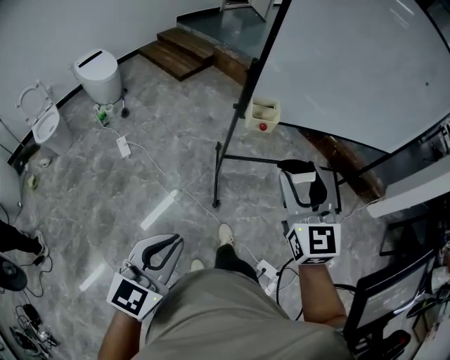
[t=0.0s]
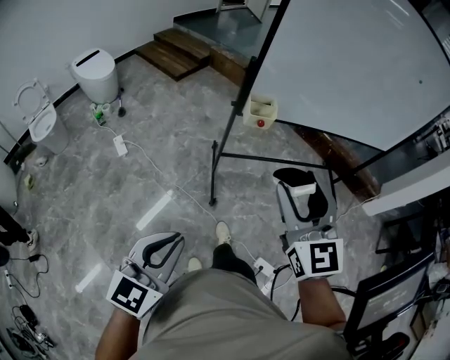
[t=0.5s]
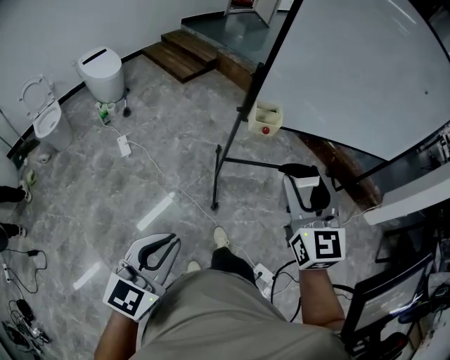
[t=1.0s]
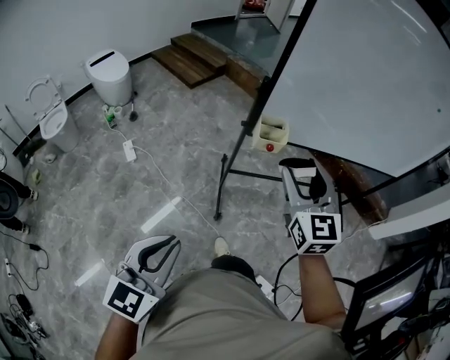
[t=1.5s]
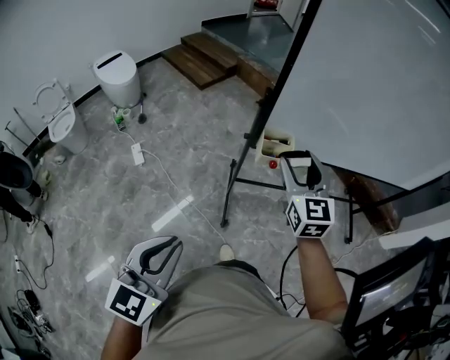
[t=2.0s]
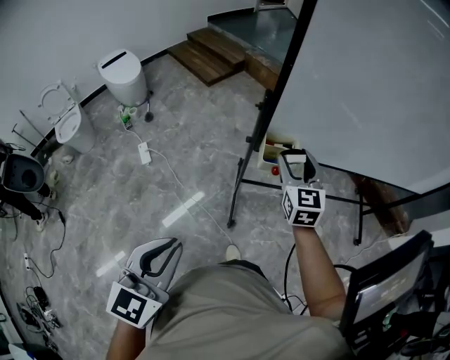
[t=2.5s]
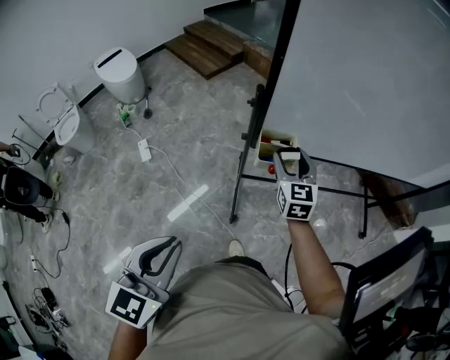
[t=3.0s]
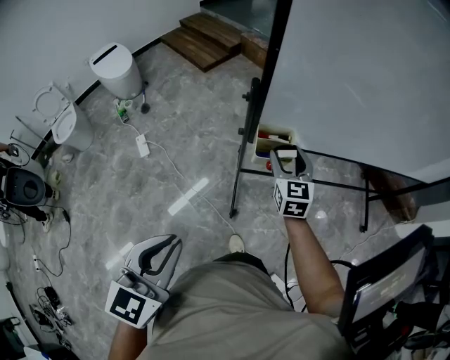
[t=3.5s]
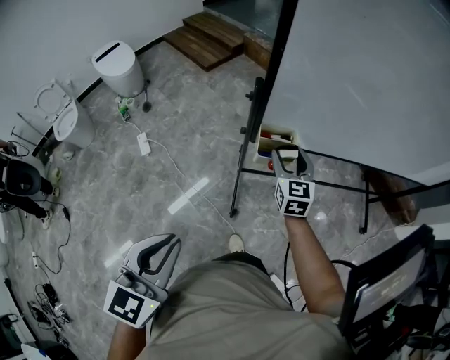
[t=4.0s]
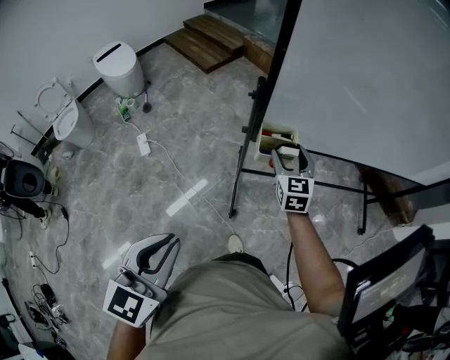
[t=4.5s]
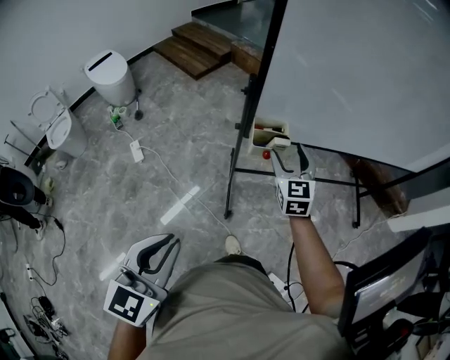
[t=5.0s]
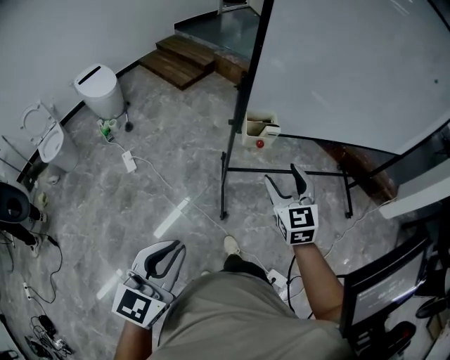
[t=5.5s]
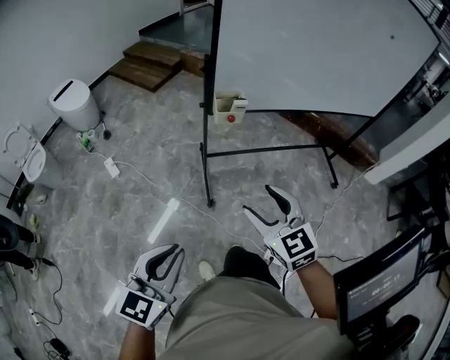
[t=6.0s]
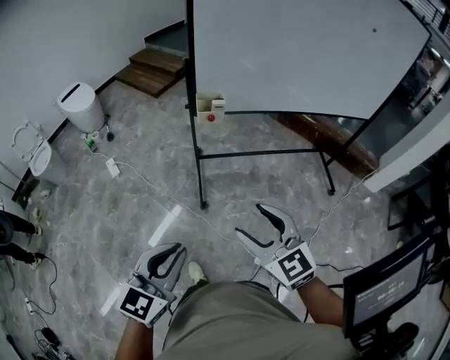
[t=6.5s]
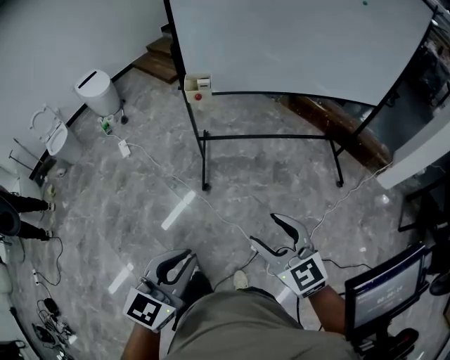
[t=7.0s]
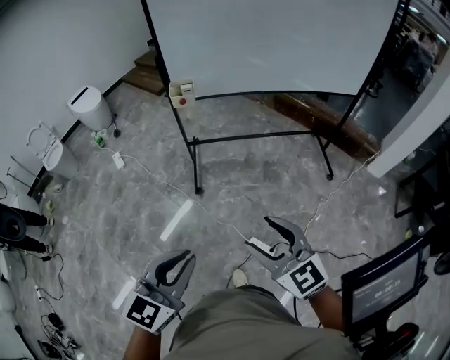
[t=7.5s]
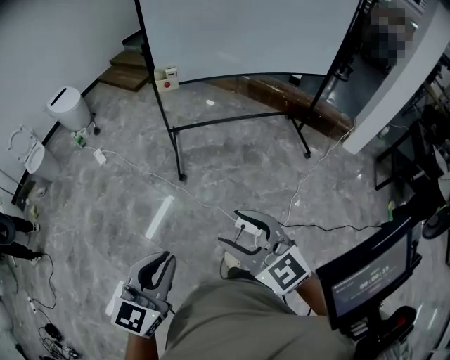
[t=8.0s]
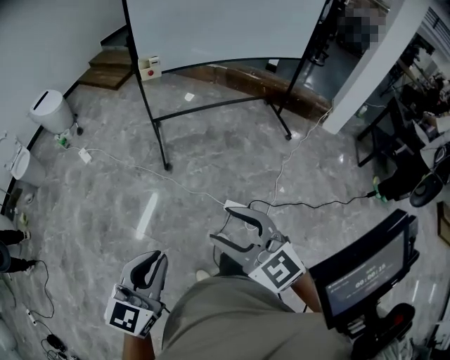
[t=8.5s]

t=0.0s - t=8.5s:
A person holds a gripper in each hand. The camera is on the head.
t=0.0s - t=2.0s: The right gripper moves forward, roughly 20 cm. The left gripper travels forward by roughly 10 cm.
t=2.0s - t=4.0s: The right gripper travels downward and forward by some 20 cm. Meanwhile the left gripper shifts some 5 cm forward.
t=4.0s - t=6.5s: The right gripper is displaced backward by approximately 50 cm, and changes its angle by roughly 20 degrees, while the left gripper goes about 30 cm backward and to the right.
t=6.5s - t=8.5s: The two grippers go roughly 40 cm backward.

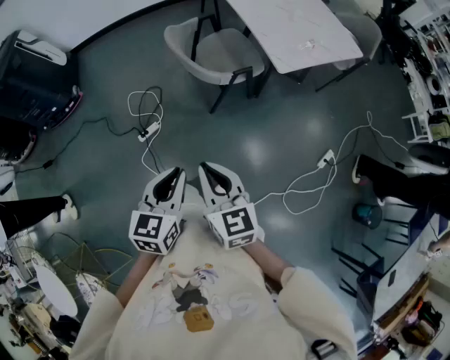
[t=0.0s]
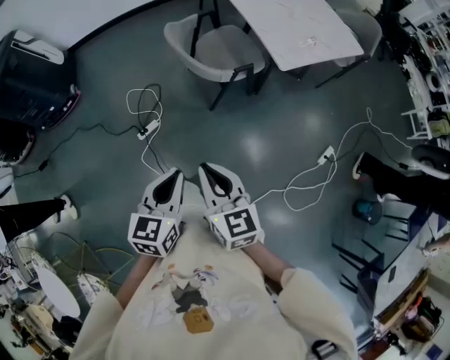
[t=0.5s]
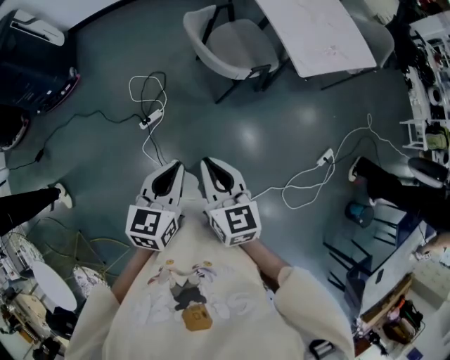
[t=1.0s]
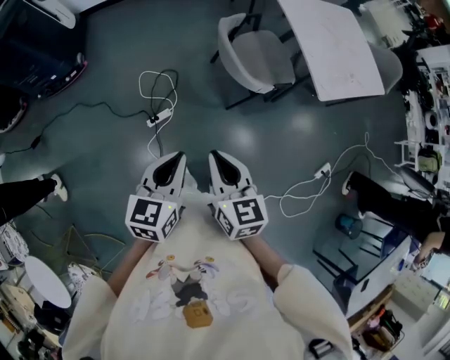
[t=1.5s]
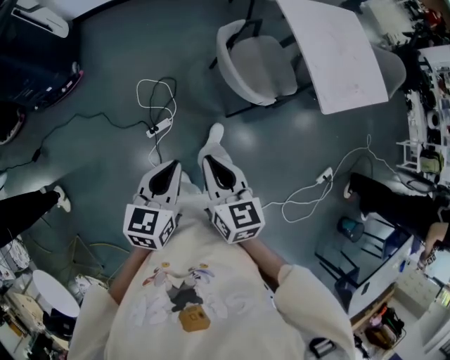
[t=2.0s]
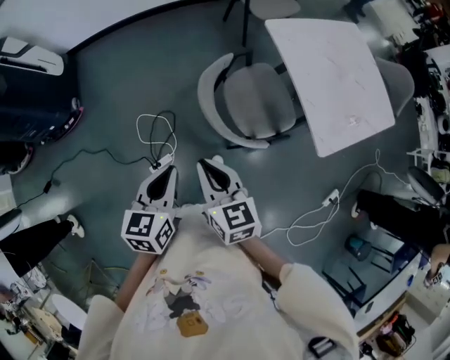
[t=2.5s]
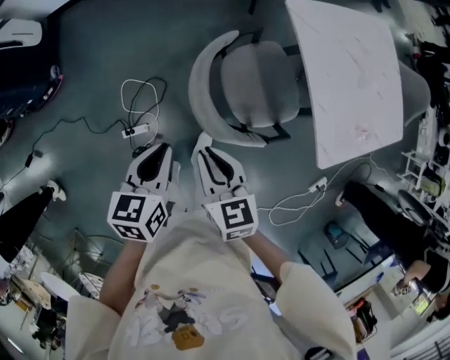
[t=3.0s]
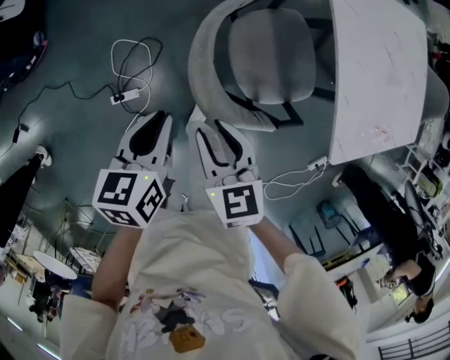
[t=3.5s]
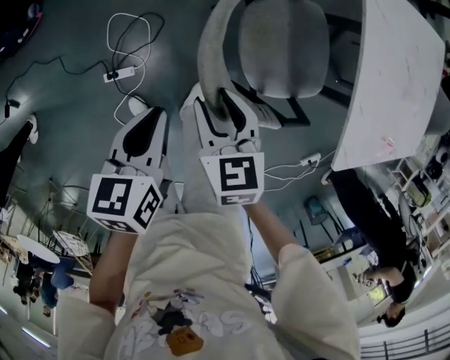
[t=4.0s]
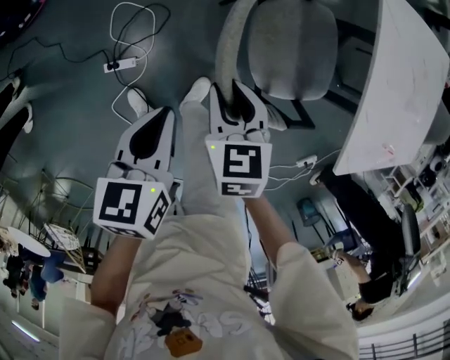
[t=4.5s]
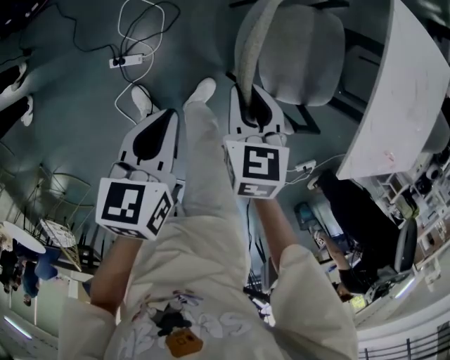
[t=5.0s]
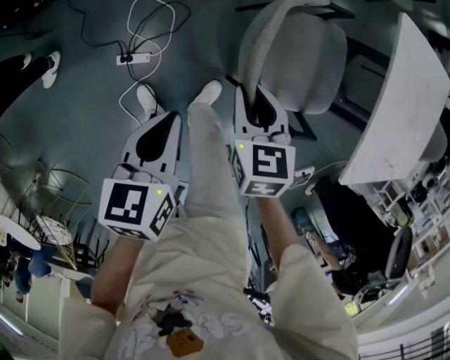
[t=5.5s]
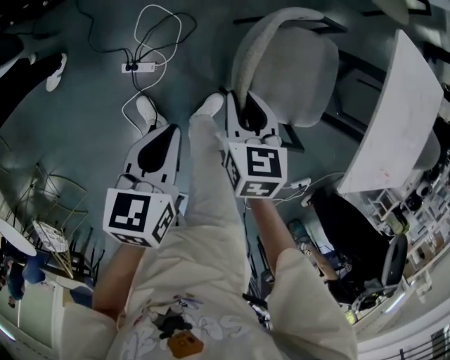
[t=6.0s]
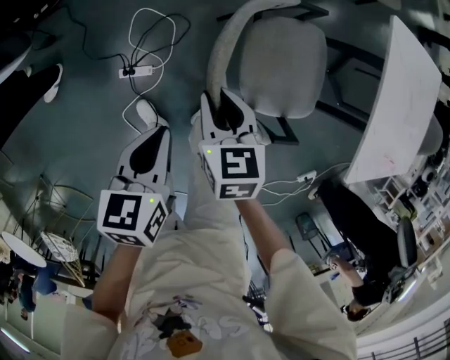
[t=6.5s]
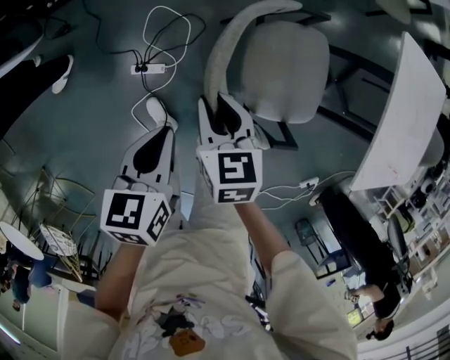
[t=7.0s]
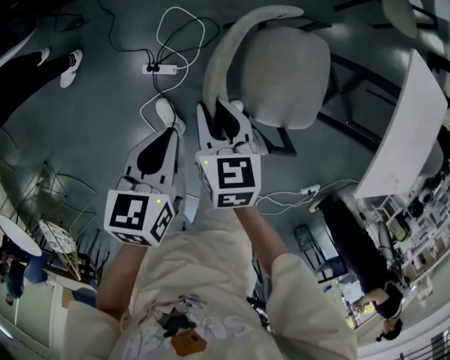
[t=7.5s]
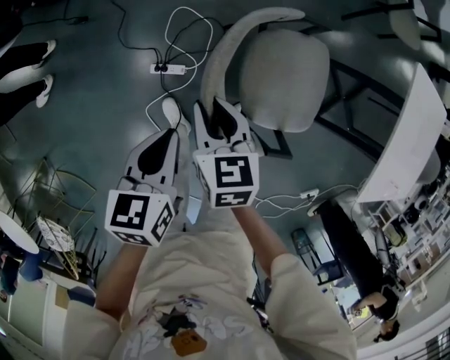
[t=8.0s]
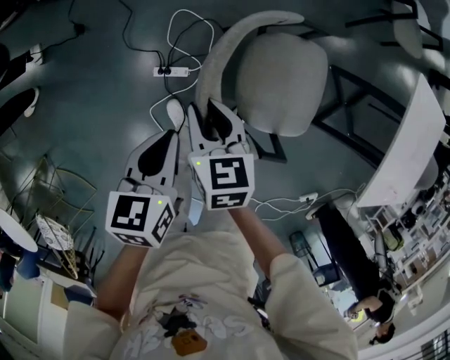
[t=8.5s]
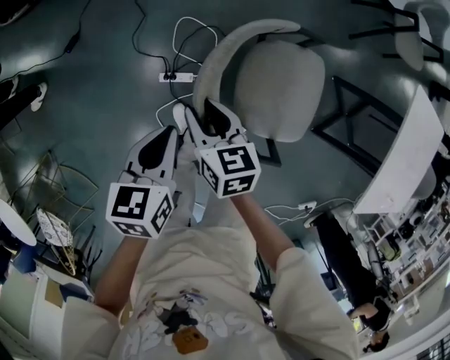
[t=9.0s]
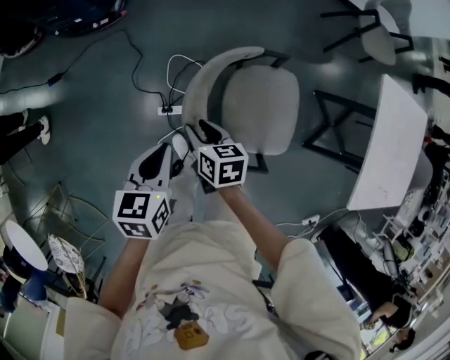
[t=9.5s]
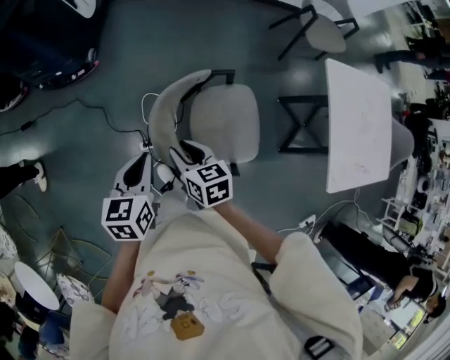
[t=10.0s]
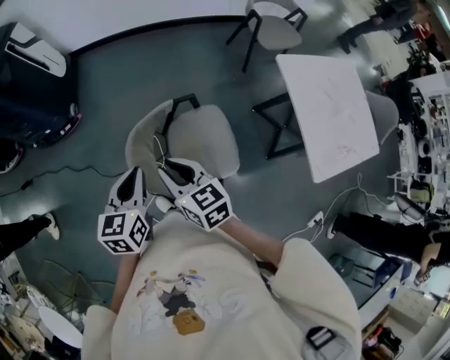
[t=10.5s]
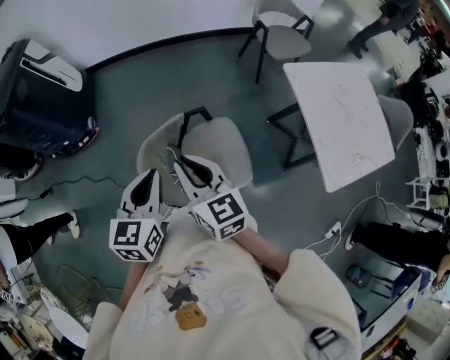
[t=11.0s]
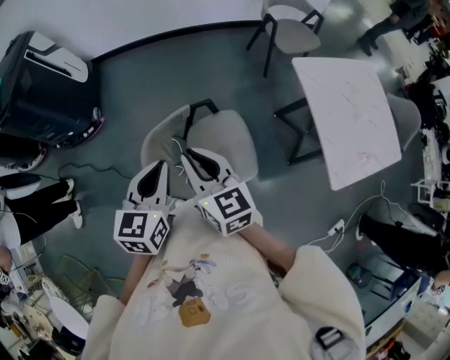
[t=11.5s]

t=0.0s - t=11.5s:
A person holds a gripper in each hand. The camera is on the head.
t=0.0s - t=2.0s: Both grippers travel together to the left and forward, some 30 cm.
t=2.0s - t=4.0s: The grippers both shift forward and downward by approximately 40 cm. The left gripper rotates approximately 30 degrees, while the right gripper rotates approximately 20 degrees, and opens its fingers.
t=4.0s - t=6.0s: The right gripper moves to the left, some 10 cm, while the left gripper goes some 15 cm to the left and backward.
t=6.0s - t=7.5s: Both grippers travel together to the left, about 15 cm.
t=7.5s - t=9.5s: The left gripper travels to the left and upward by some 15 cm; the right gripper is displaced to the left by approximately 10 cm.
t=9.5s - t=11.5s: Both grippers travel together upward and to the right, some 35 cm. The right gripper changes its angle by about 40 degrees, and closes up. Meanwhile the left gripper rotates some 30 degrees.

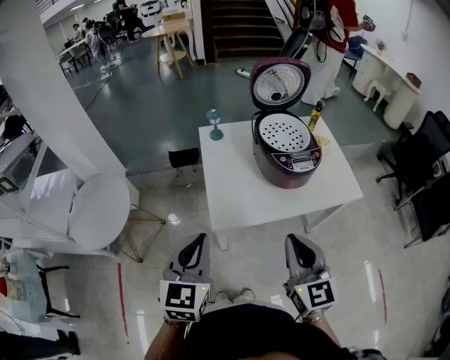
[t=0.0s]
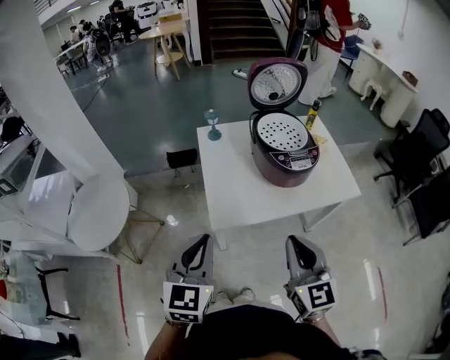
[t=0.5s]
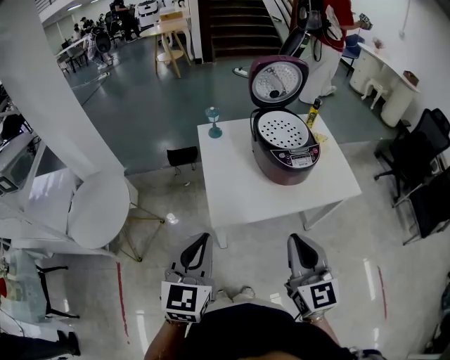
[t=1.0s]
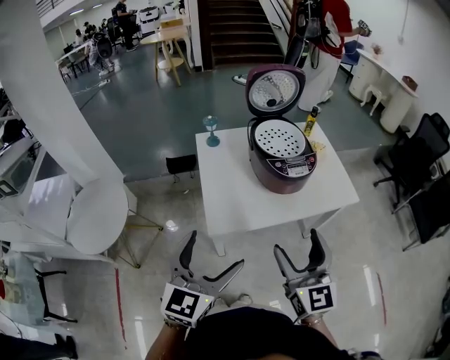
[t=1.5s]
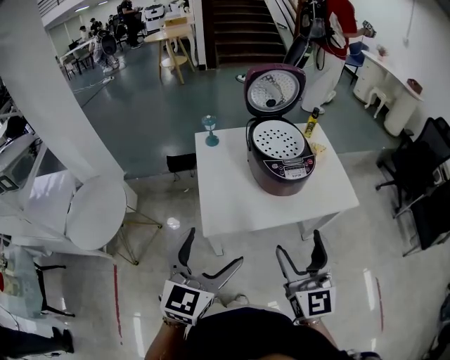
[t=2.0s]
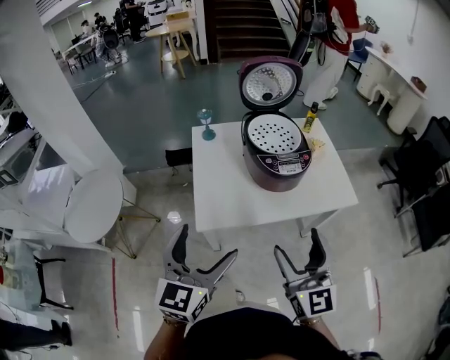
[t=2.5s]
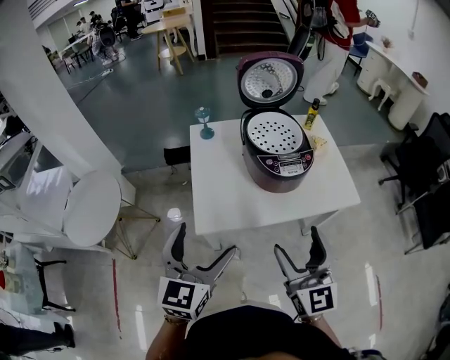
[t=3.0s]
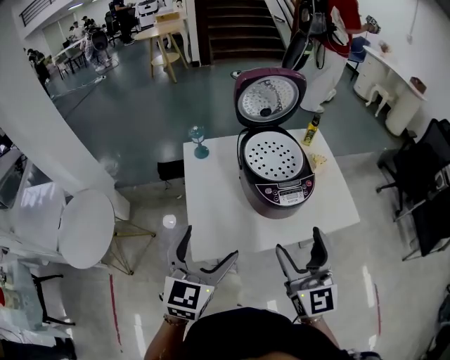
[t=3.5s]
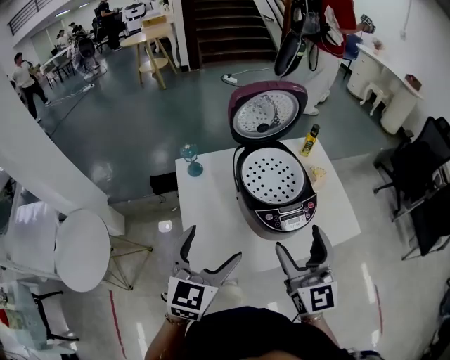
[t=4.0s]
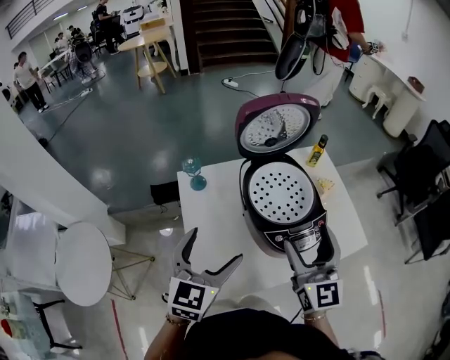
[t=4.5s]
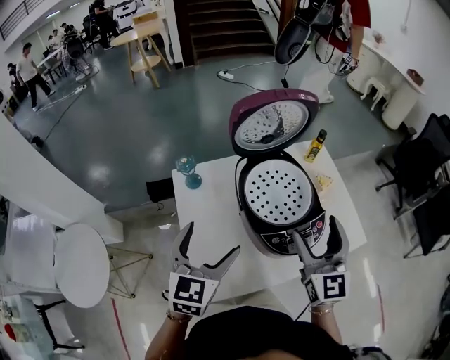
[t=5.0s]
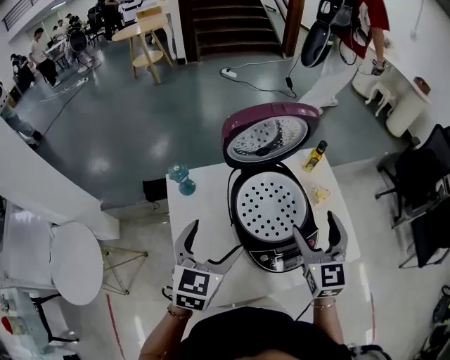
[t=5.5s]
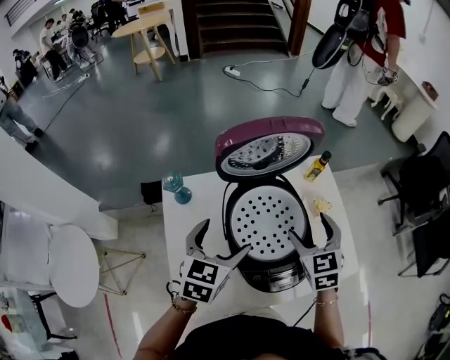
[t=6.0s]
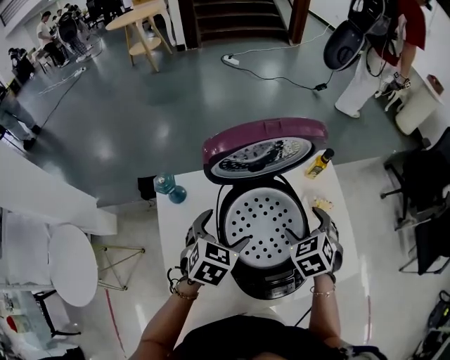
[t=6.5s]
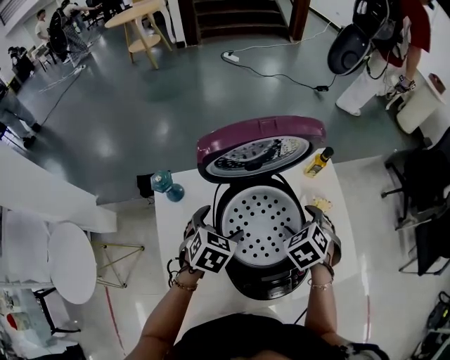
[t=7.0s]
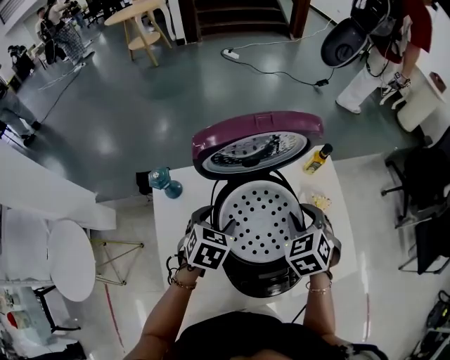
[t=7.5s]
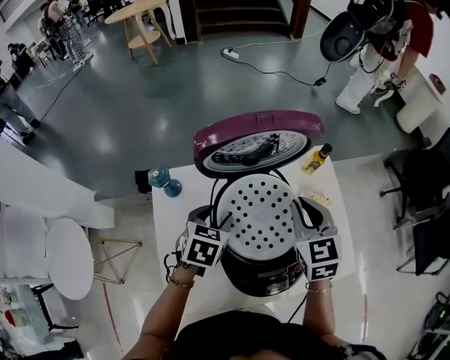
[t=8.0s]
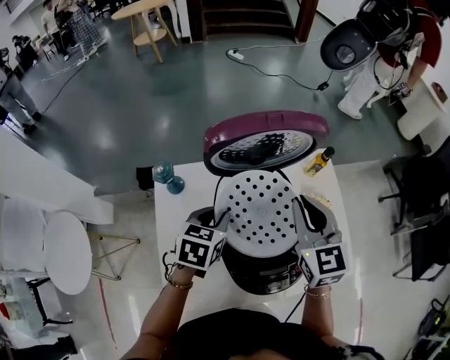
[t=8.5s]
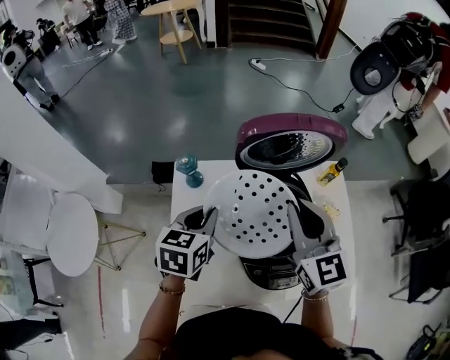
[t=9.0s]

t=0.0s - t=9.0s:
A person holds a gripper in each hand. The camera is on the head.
t=0.0s - t=2.0s: The left gripper goes about 10 cm to the right, and opens its fingers; the right gripper moves roughly 5 cm, and opens up.
t=2.0s - t=4.5s: The grippers both shift forward by some 30 cm.
t=4.5s - t=7.0s: Both grippers travel together forward and downward, some 25 cm. The left gripper tilts its fingers some 30 degrees downward; the right gripper points its fingers approximately 60 degrees further downward.
t=7.0s - t=9.0s: The left gripper goes approximately 10 cm upward and to the left, turns by about 30 degrees, and closes its fingers; the right gripper goes approximately 20 cm upward and to the left, tips its fingers upward by approximately 50 degrees, and closes.
